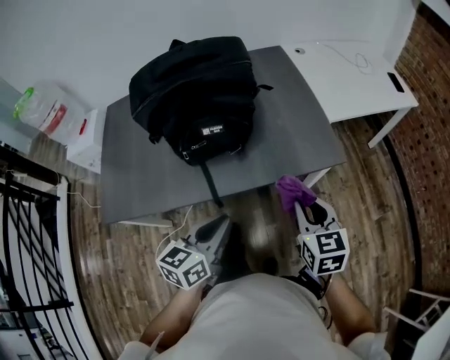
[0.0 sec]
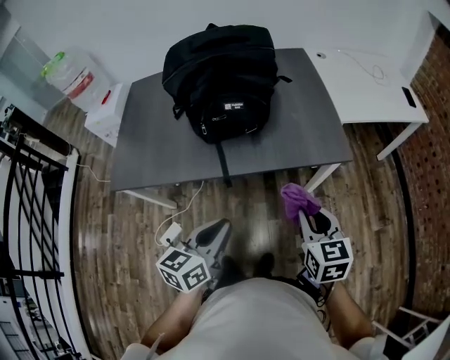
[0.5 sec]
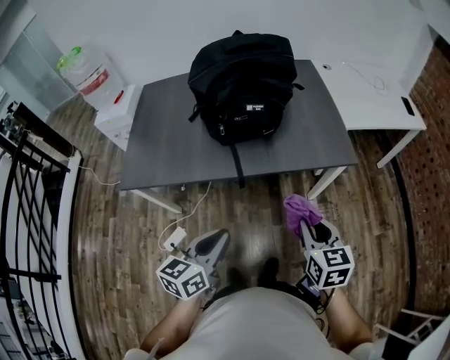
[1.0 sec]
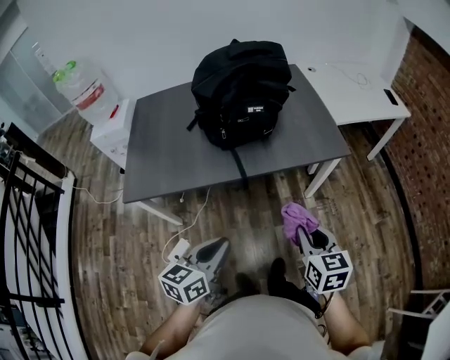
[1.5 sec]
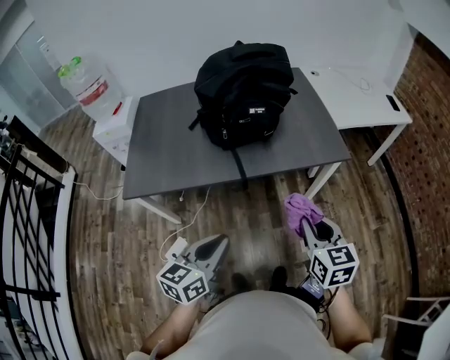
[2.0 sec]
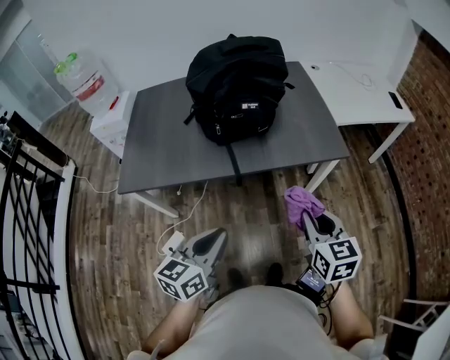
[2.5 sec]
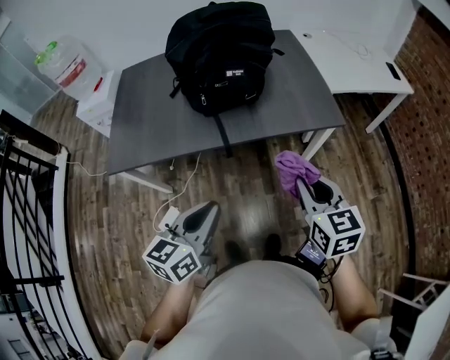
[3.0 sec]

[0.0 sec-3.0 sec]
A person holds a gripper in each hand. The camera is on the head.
0.0 sec to 1.5 sec: The left gripper heads backward and to the left, covering roughly 25 cm; the right gripper heads backward, covering about 20 cm.
1.5 sec to 3.0 sec: The right gripper heads forward, covering about 5 cm. Meanwhile the left gripper shifts by approximately 5 cm.

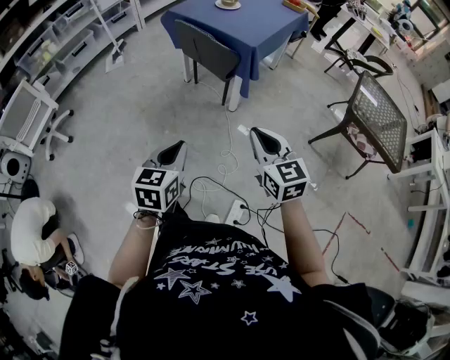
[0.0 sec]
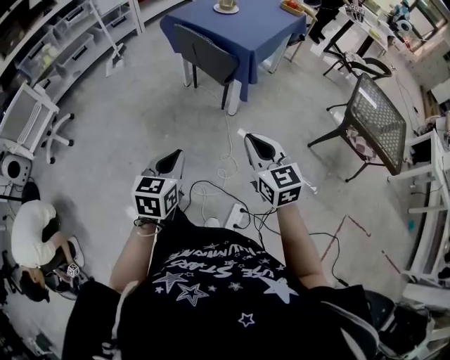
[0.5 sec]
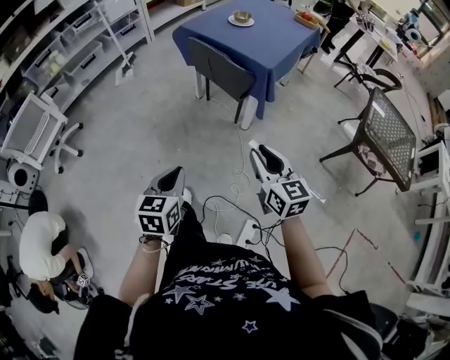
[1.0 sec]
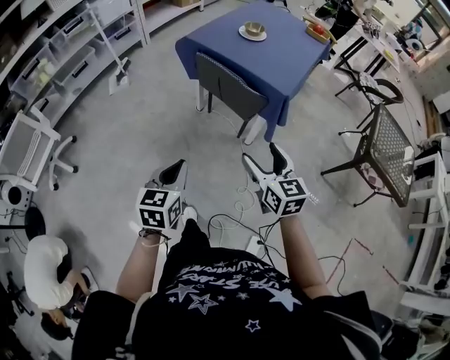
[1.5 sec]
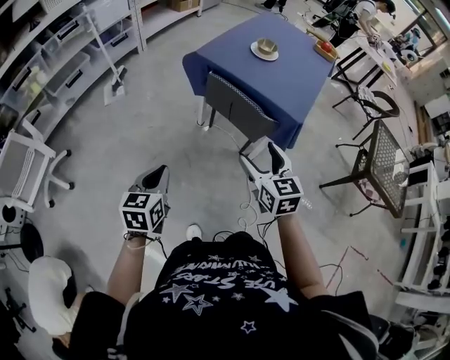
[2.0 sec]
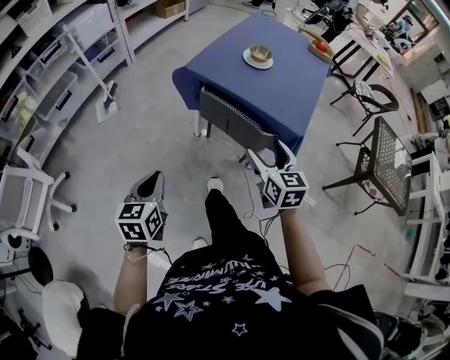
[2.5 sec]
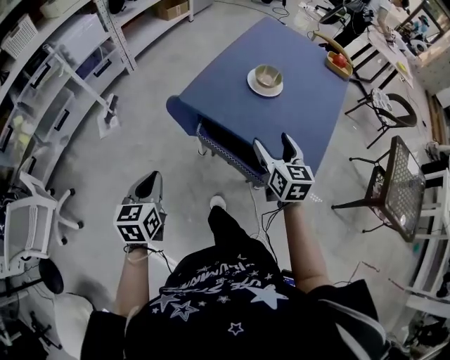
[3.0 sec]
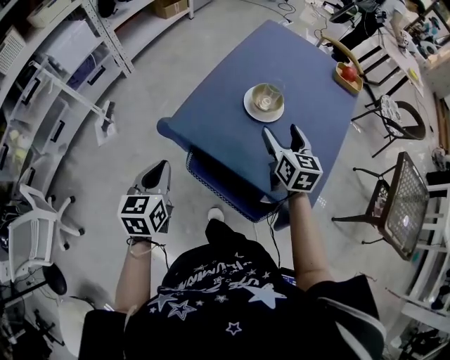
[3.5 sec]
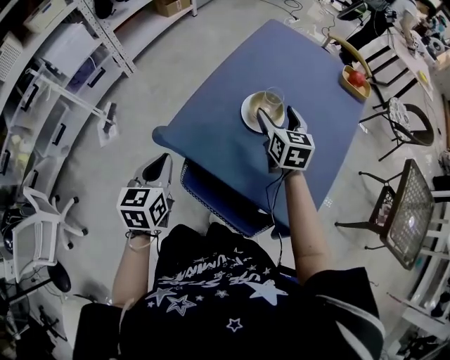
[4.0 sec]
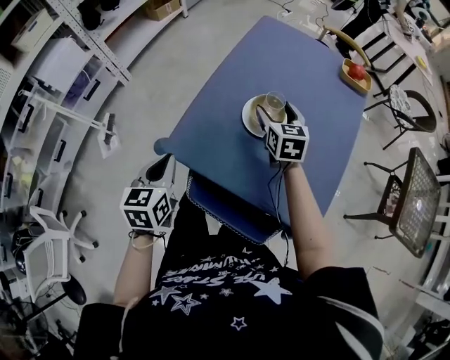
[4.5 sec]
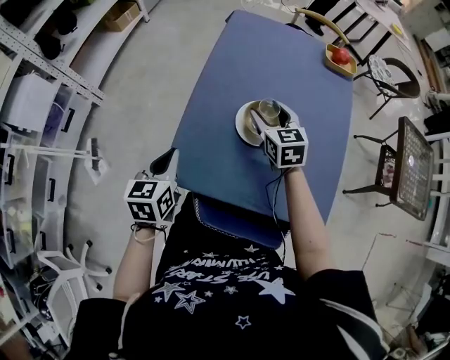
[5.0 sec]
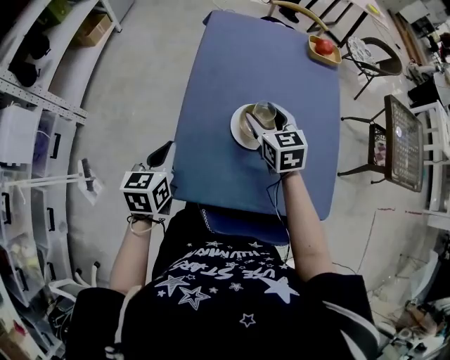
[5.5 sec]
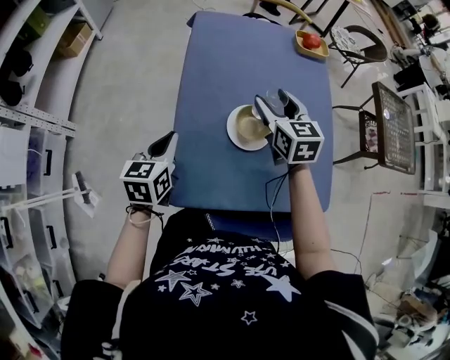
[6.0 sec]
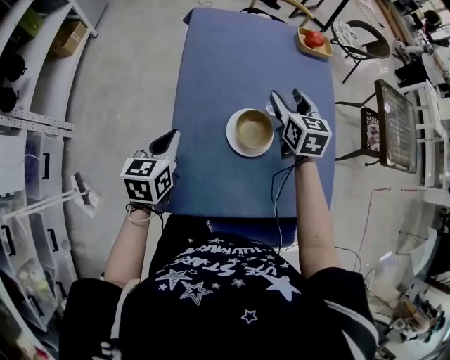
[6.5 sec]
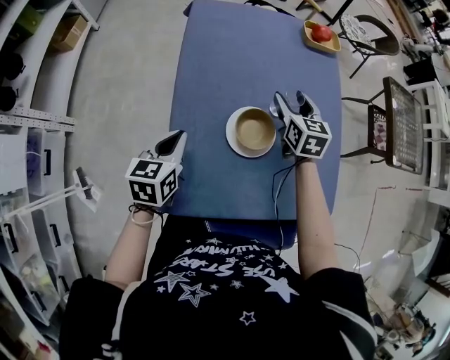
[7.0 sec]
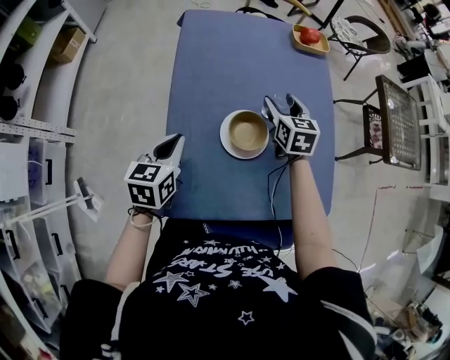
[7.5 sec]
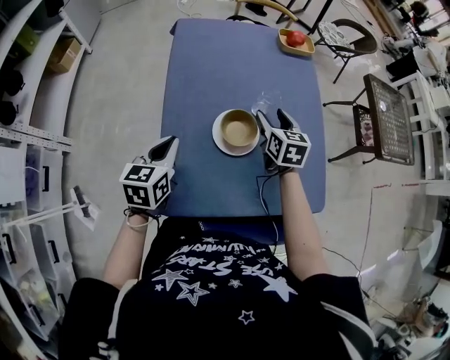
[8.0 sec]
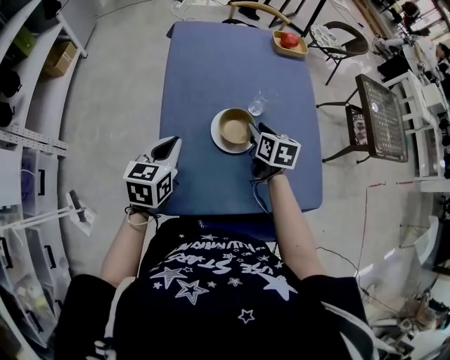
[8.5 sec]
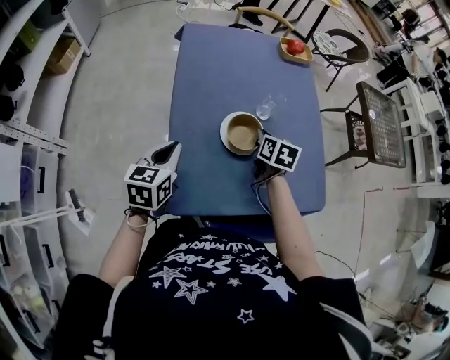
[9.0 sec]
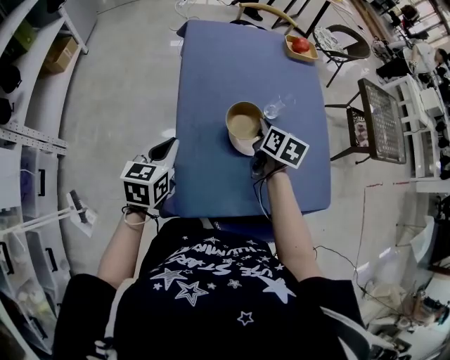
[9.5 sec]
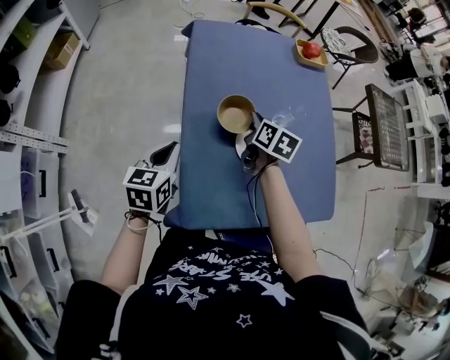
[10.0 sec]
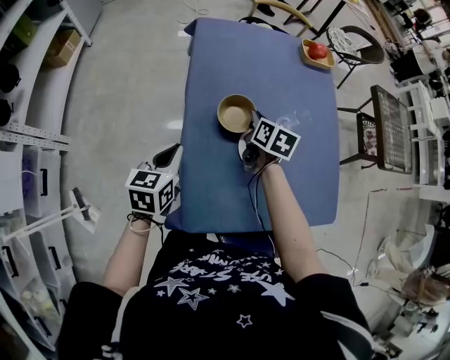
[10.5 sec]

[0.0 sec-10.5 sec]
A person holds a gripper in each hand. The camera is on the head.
0.0 sec to 2.0 sec: The pair of grippers is taken forward and to the left, approximately 40 cm. The right gripper opens.
2.0 sec to 4.0 sec: The two grippers travel together, forward, some 60 cm.
4.0 sec to 6.5 sec: The right gripper ends up some 15 cm from where it was, and swivels roughly 30 degrees. The left gripper changes place by some 30 cm, and swivels some 40 degrees.
6.5 sec to 8.5 sec: The left gripper ends up approximately 5 cm from where it was. Meanwhile the right gripper heads backward and downward, covering approximately 10 cm, and turns by approximately 20 degrees.
8.5 sec to 10.5 sec: The right gripper moves to the left and forward, approximately 15 cm, and closes its fingers. Meanwhile the left gripper is displaced to the left by some 10 cm.

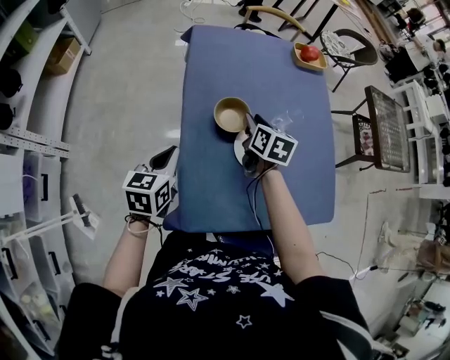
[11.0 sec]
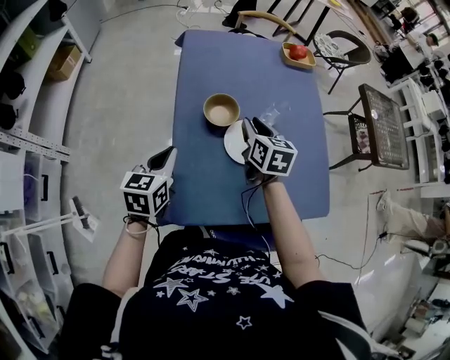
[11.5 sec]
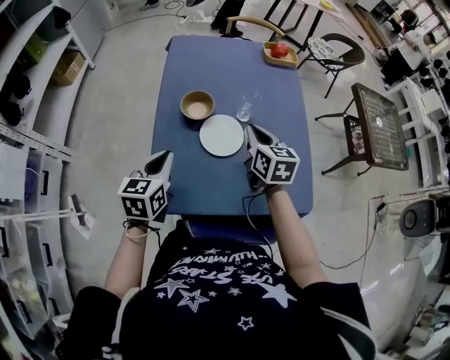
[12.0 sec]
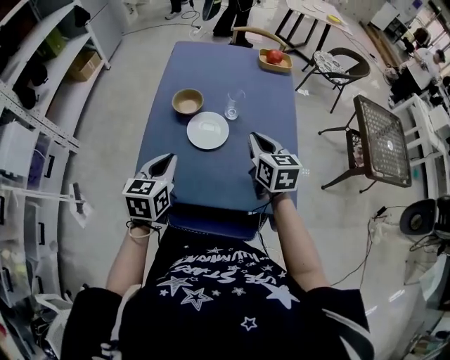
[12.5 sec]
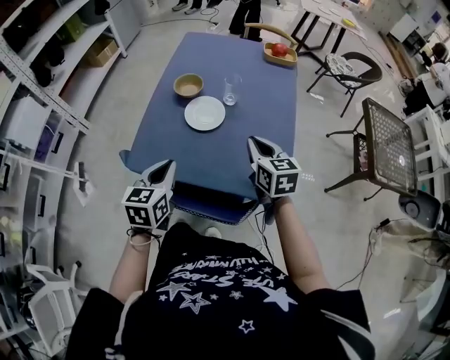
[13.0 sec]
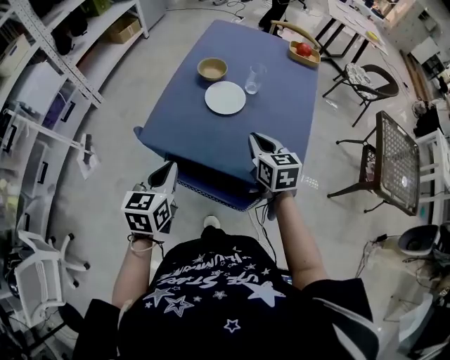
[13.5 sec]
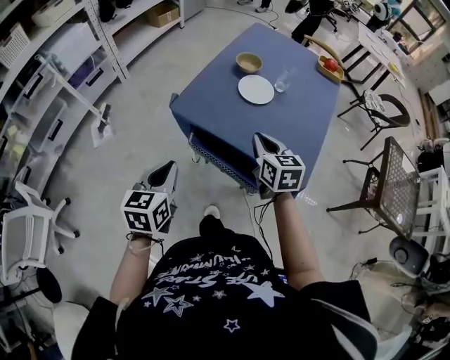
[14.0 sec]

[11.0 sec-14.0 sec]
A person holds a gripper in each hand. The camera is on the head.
11.0 sec to 12.5 sec: The left gripper shifts some 25 cm to the right and backward. The right gripper travels to the right, backward and upward by roughly 25 cm, rotates about 30 degrees, and closes.
12.5 sec to 14.0 sec: The right gripper heads backward and to the left, covering approximately 20 cm, and changes its angle by roughly 20 degrees. The left gripper is displaced backward by approximately 30 cm, and turns by some 20 degrees.

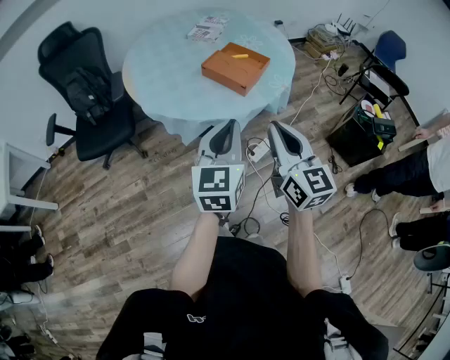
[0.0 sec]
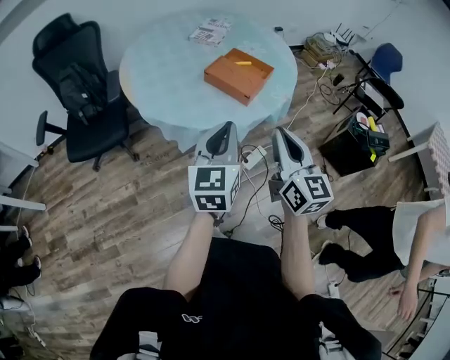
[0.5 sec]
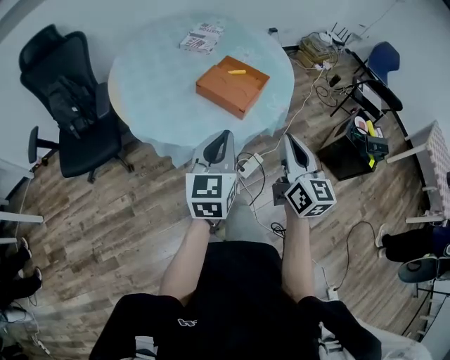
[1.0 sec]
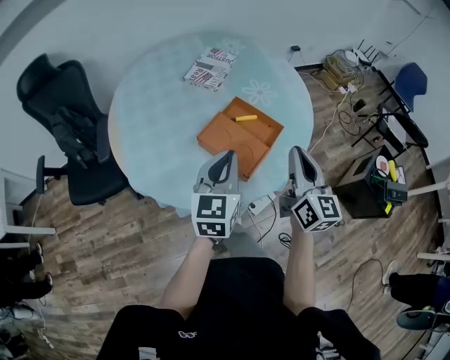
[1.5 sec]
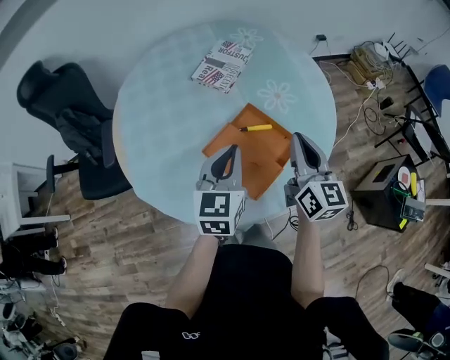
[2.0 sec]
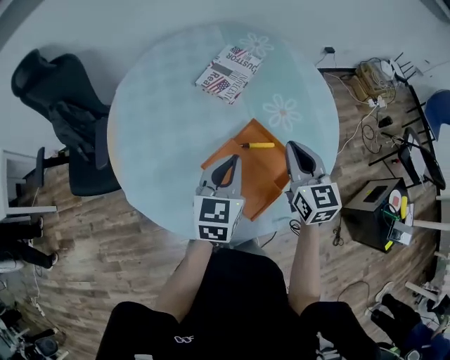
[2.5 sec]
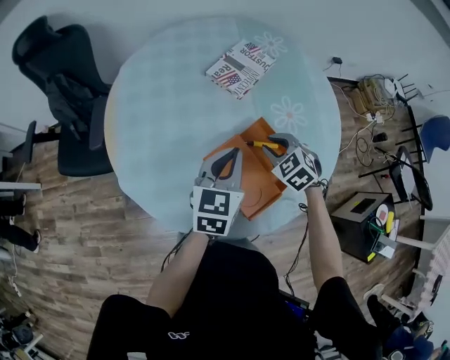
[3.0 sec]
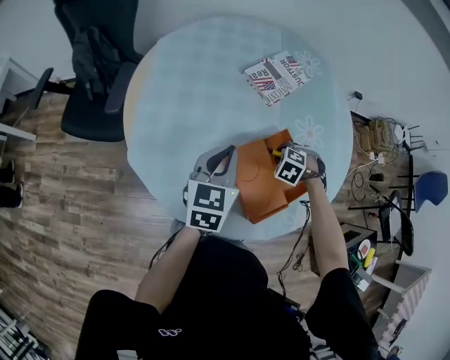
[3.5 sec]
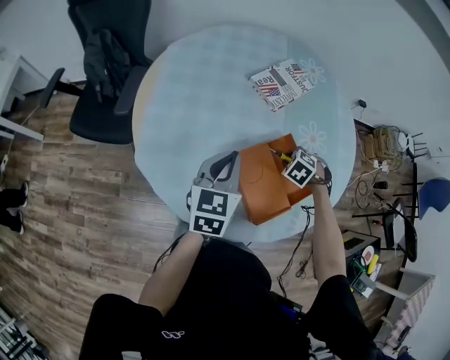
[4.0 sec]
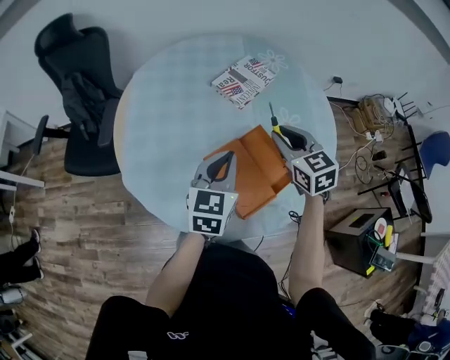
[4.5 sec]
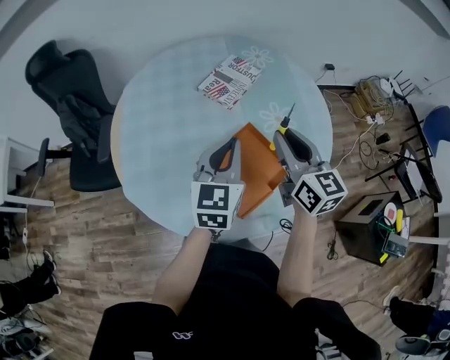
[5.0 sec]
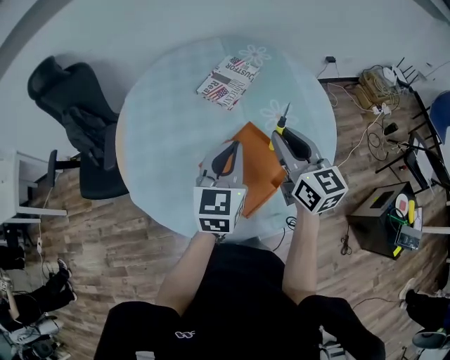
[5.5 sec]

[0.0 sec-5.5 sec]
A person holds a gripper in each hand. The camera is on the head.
0.0 sec to 2.0 sec: The pair of grippers is taken forward, roughly 50 cm.
2.0 sec to 3.5 sec: The right gripper shifts about 25 cm downward, and tips its fingers downward by some 70 degrees, while the left gripper changes place by some 15 cm.
3.5 sec to 5.5 sec: The right gripper is displaced upward by approximately 30 cm, and tips its fingers upward by about 70 degrees; the left gripper shifts by roughly 15 cm.

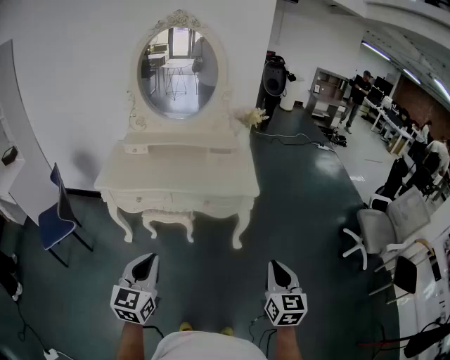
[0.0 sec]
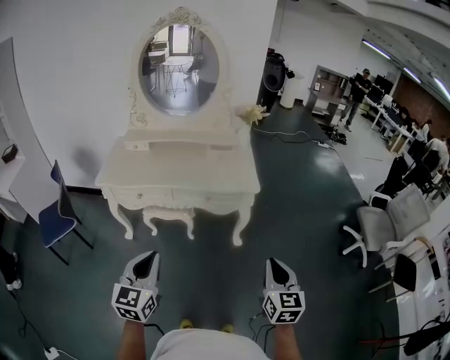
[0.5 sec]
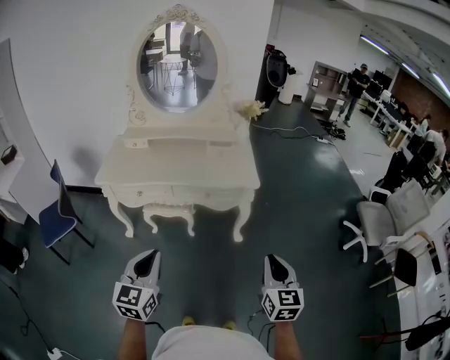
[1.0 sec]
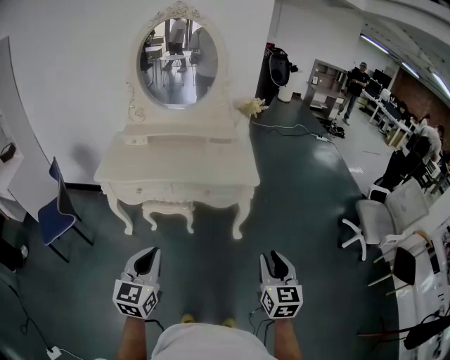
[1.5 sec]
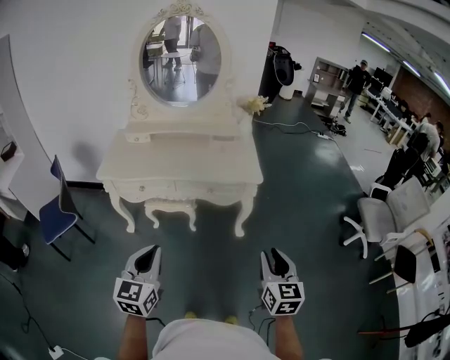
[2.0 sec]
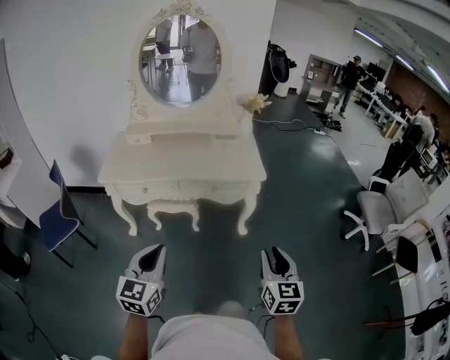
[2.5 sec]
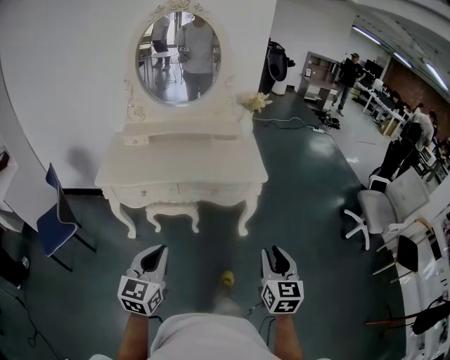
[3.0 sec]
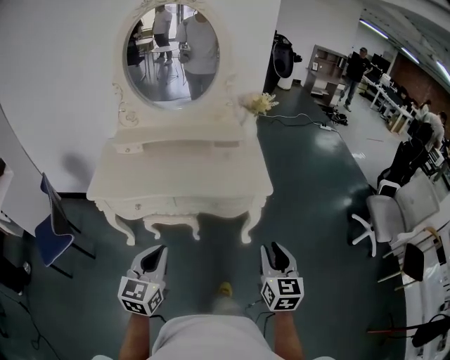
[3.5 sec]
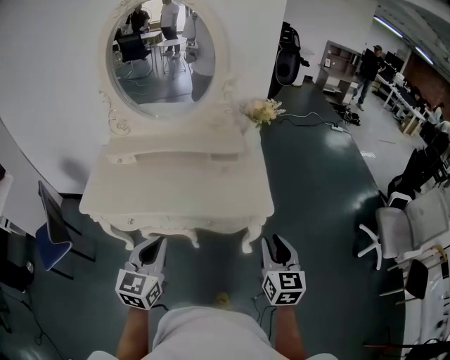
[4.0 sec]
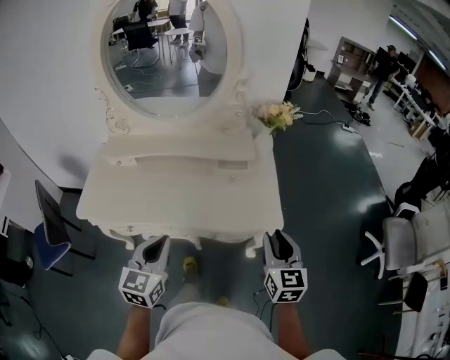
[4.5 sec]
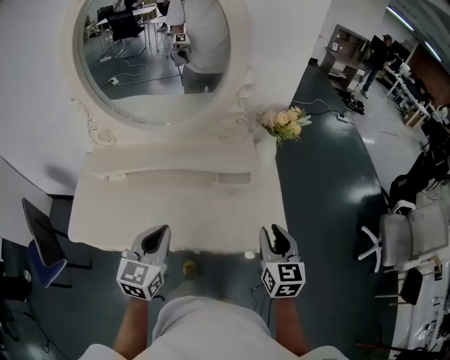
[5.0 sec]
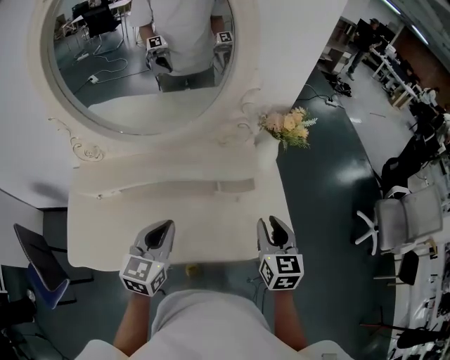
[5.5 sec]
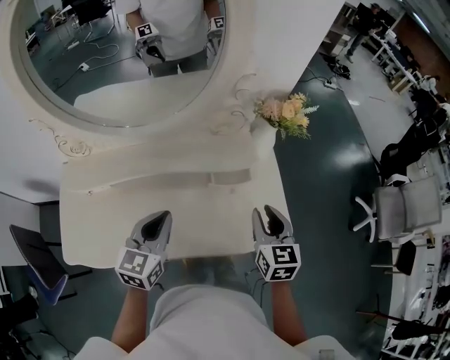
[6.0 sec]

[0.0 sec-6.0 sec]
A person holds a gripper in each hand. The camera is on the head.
0.0 sec to 2.0 sec: The right gripper opens.
2.0 sec to 4.0 sec: The two grippers go approximately 30 cm forward.
4.0 sec to 6.0 sec: The left gripper shifts approximately 35 cm forward, while the right gripper heads forward and to the left, covering about 35 cm.
